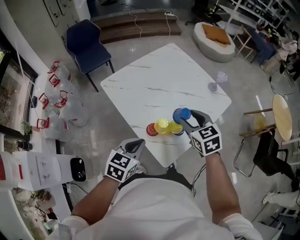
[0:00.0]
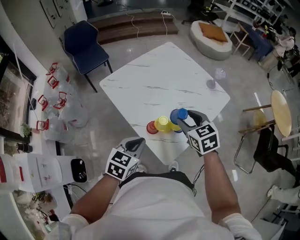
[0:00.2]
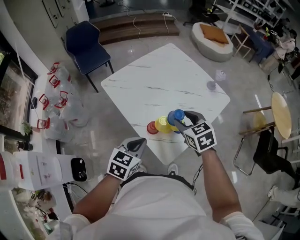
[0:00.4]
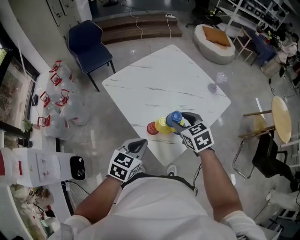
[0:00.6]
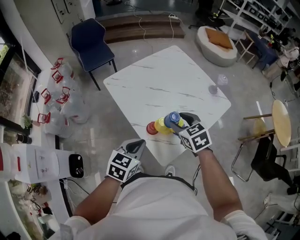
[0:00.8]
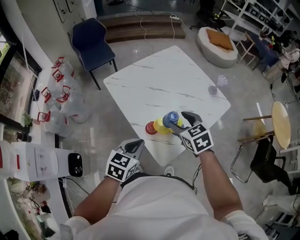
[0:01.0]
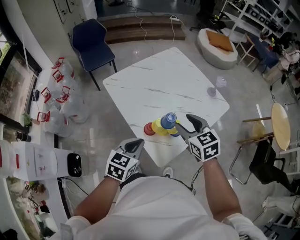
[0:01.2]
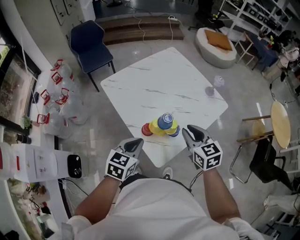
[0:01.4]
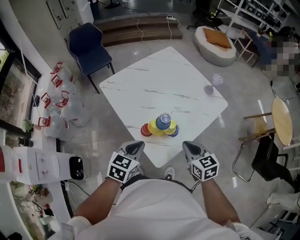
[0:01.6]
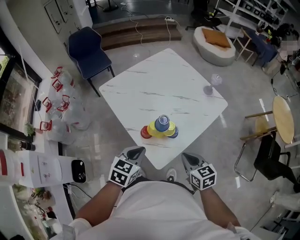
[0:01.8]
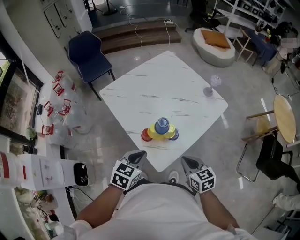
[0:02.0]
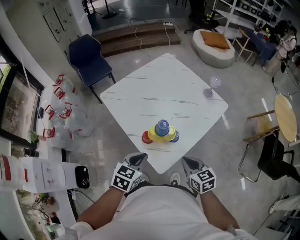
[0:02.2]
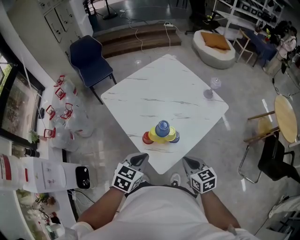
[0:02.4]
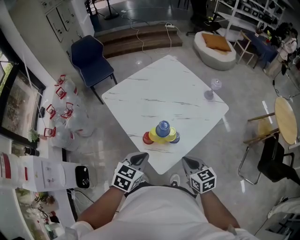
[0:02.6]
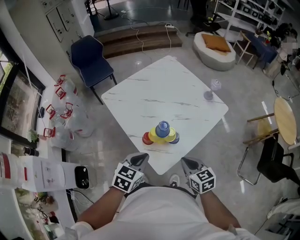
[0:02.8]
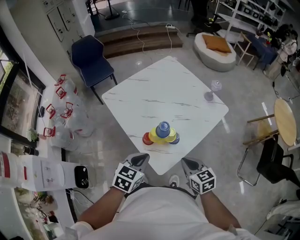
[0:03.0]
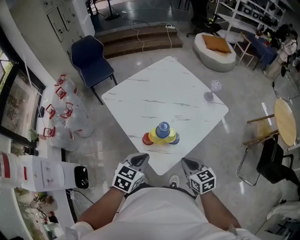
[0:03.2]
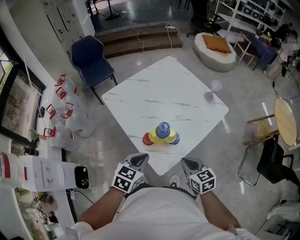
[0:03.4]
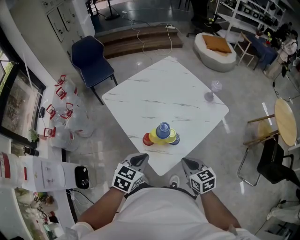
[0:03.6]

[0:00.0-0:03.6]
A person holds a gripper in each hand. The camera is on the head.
0.0 to 1.8 s: The left gripper shifts by some 5 cm. Meanwhile the right gripper travels backward, downward and to the right by about 20 cm, and closes up.
1.8 to 3.6 s: The grippers stay close to where they were, moving slightly.

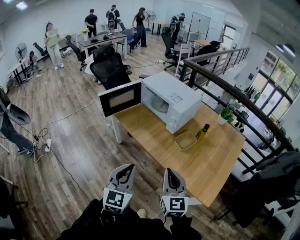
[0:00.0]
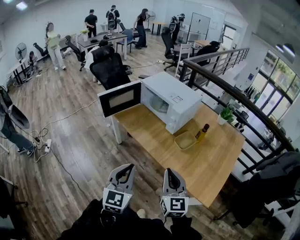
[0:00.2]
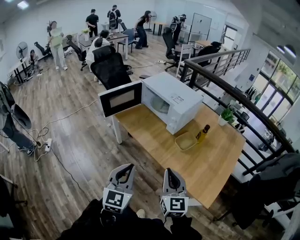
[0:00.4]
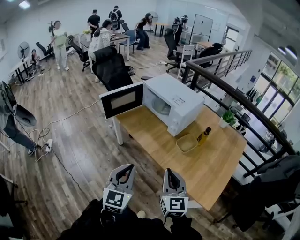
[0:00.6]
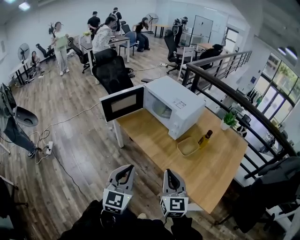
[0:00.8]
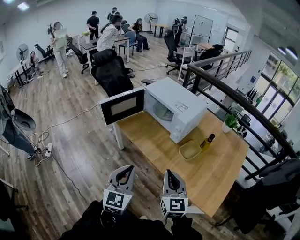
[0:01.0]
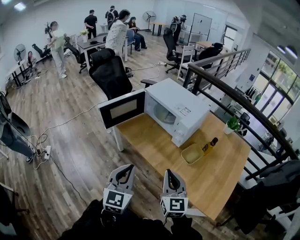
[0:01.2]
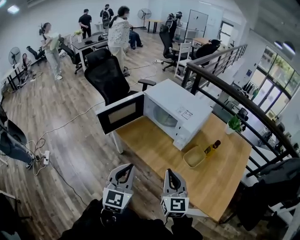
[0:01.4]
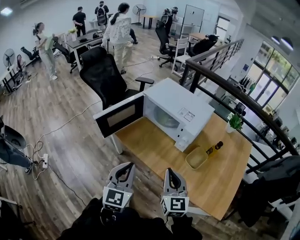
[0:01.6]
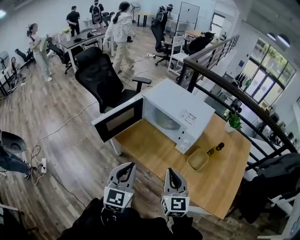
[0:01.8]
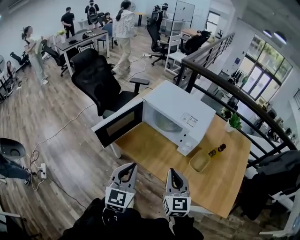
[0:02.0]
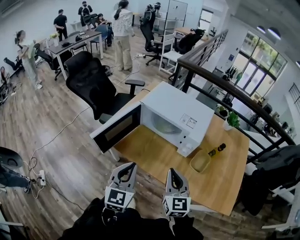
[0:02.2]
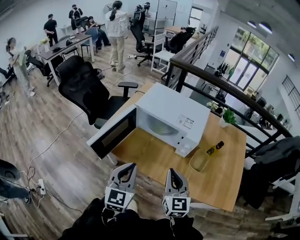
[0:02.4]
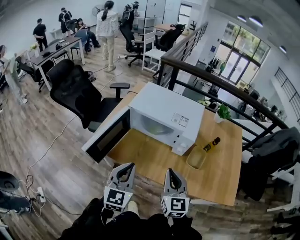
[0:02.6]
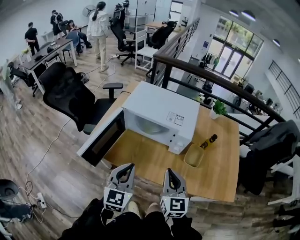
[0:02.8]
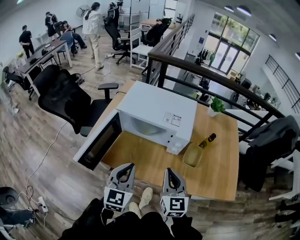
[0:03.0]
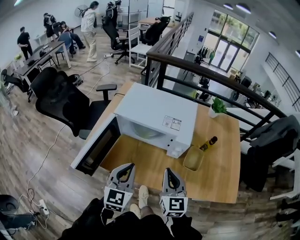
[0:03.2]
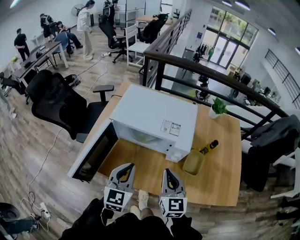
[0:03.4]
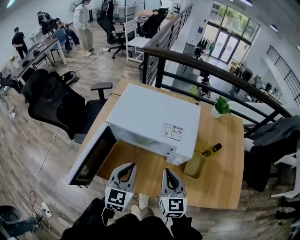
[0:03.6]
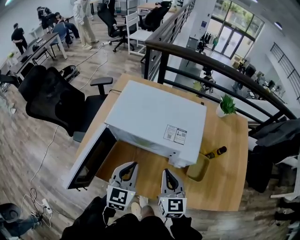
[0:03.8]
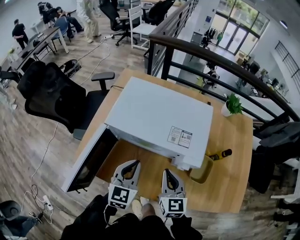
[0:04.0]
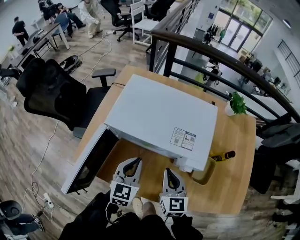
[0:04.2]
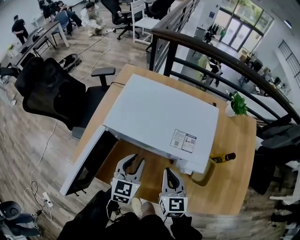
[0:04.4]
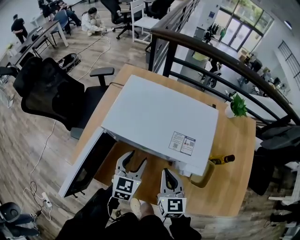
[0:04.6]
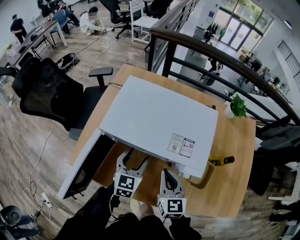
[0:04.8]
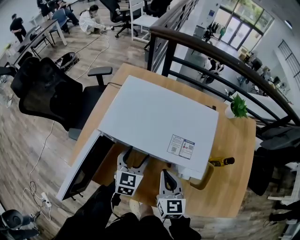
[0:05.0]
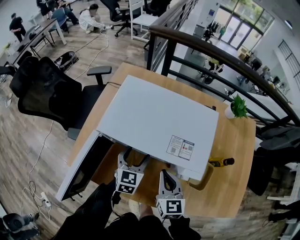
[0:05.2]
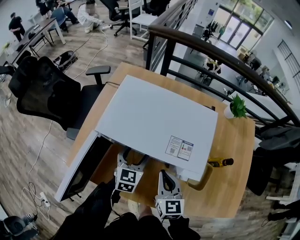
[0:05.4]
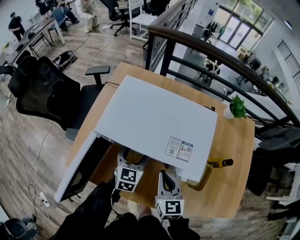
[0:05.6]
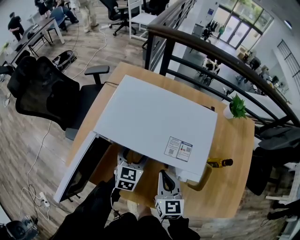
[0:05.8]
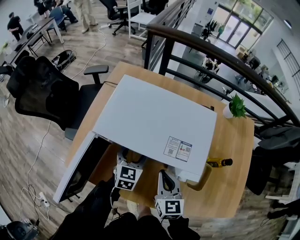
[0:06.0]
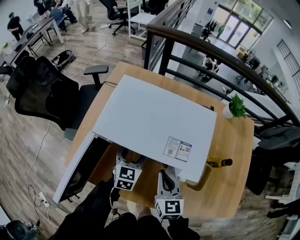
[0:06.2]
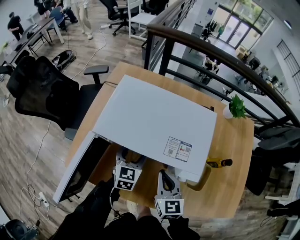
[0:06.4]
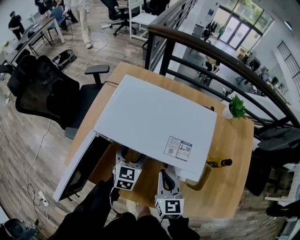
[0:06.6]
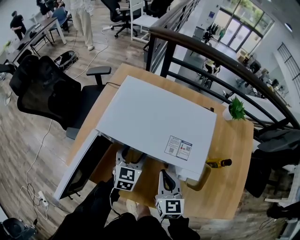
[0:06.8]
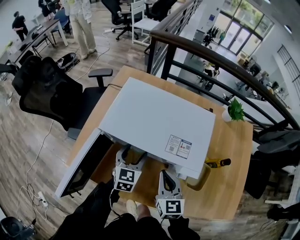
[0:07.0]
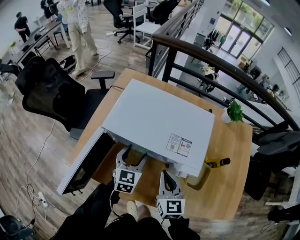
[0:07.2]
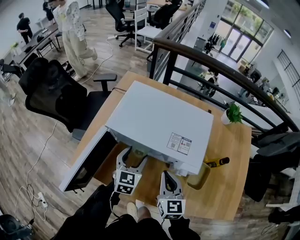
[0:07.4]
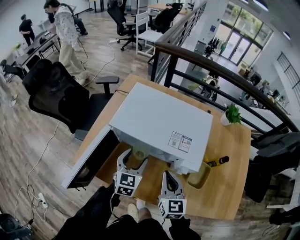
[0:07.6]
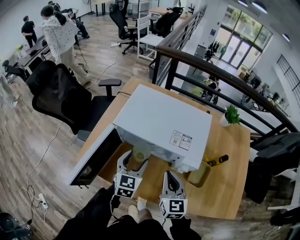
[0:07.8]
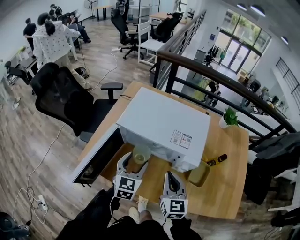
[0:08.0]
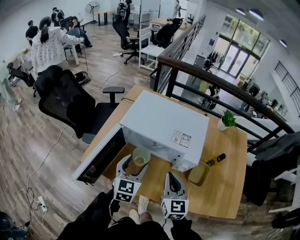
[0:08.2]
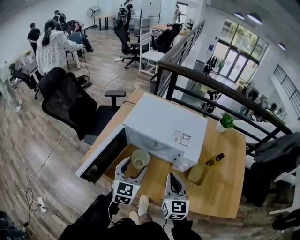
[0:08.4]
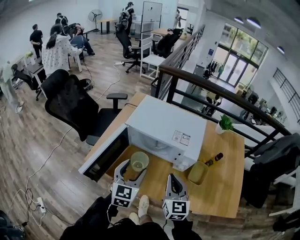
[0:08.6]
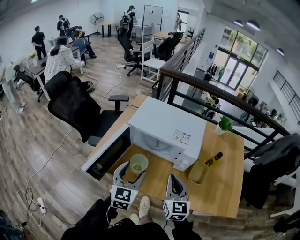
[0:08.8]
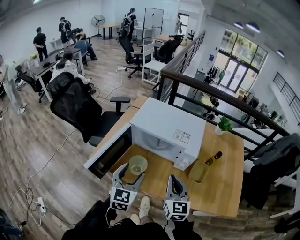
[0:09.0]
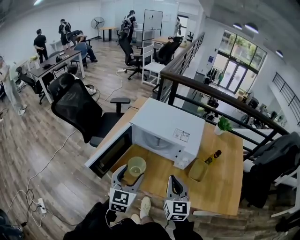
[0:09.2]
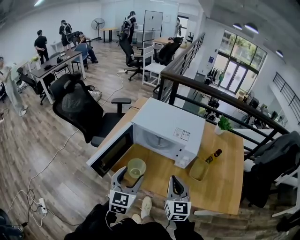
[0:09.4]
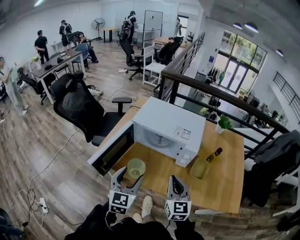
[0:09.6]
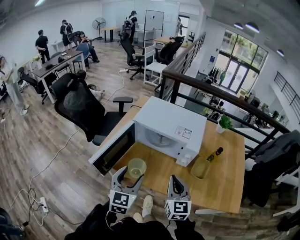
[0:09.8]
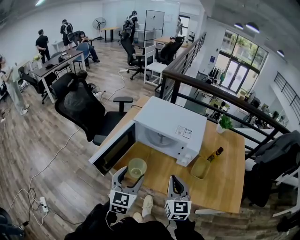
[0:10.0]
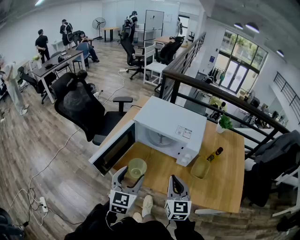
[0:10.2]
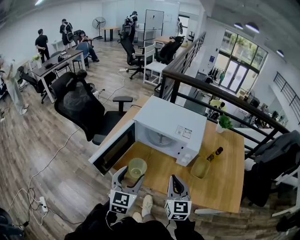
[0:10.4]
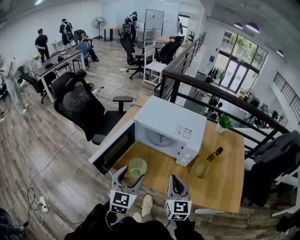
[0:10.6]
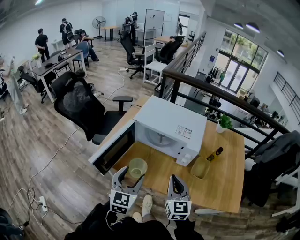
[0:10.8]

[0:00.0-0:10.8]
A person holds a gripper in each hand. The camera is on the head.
0.0 to 1.6 s: Both grippers move forward and to the left, roughly 25 cm.
1.6 to 3.0 s: The two grippers go about 15 cm forward. The left gripper swivels about 20 degrees. Meanwhile the right gripper changes its angle by approximately 20 degrees.
3.0 to 4.6 s: Both grippers move forward and downward, about 25 cm. The left gripper opens up.
4.6 to 6.2 s: The left gripper heads forward, covering about 5 cm.
6.2 to 7.8 s: Both grippers move backward and upward, approximately 10 cm.
7.8 to 9.2 s: The two grippers go approximately 20 cm backward and upward.
9.2 to 10.8 s: The grippers stay close to where they were, moving slightly.

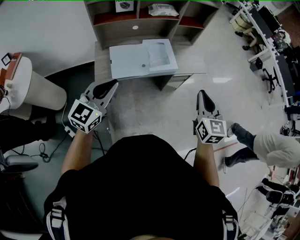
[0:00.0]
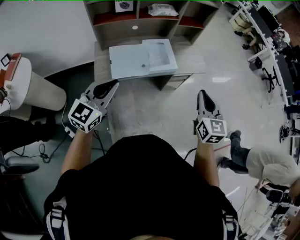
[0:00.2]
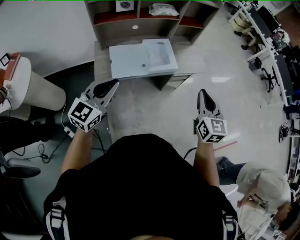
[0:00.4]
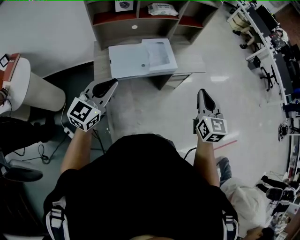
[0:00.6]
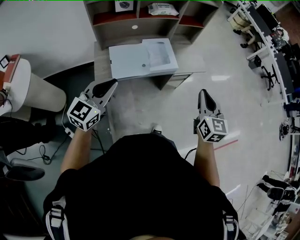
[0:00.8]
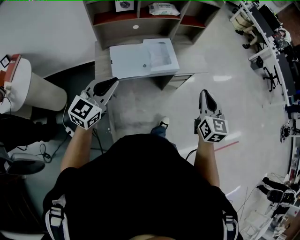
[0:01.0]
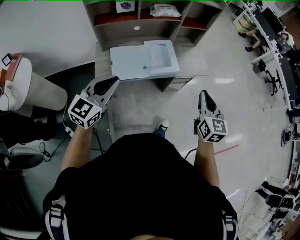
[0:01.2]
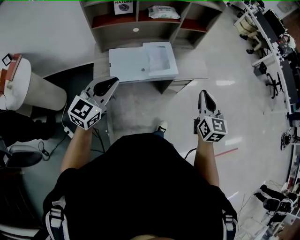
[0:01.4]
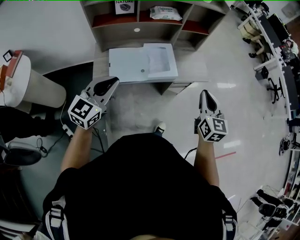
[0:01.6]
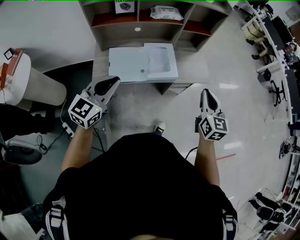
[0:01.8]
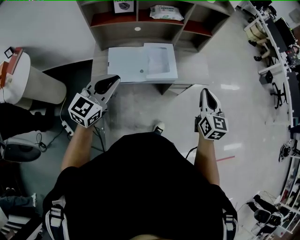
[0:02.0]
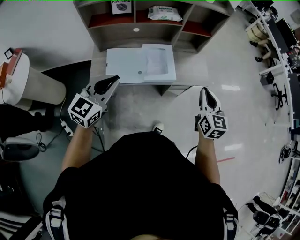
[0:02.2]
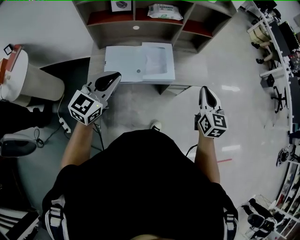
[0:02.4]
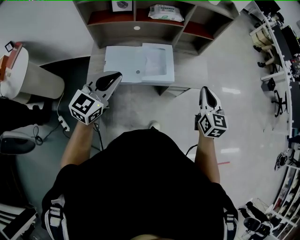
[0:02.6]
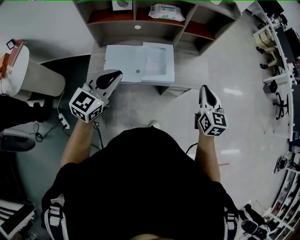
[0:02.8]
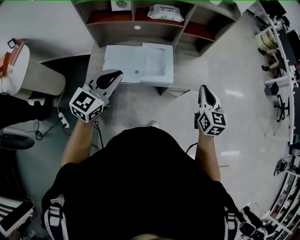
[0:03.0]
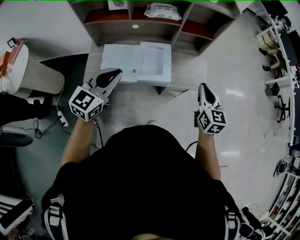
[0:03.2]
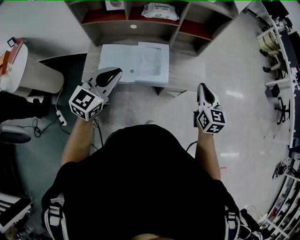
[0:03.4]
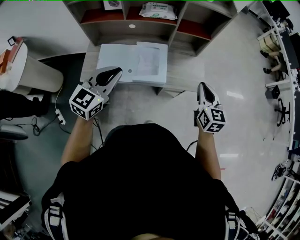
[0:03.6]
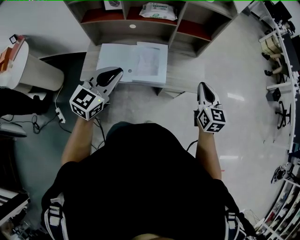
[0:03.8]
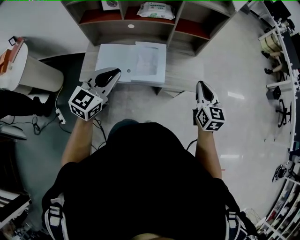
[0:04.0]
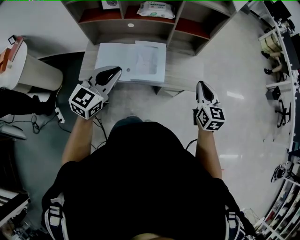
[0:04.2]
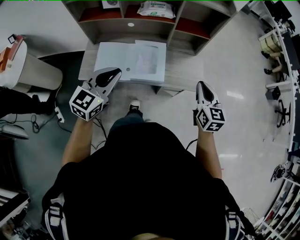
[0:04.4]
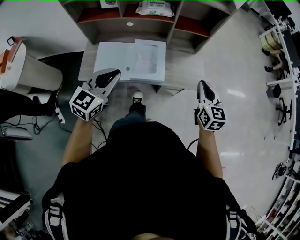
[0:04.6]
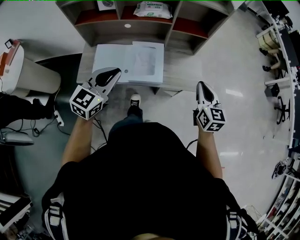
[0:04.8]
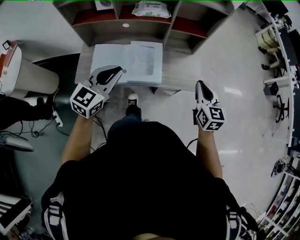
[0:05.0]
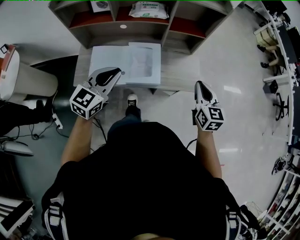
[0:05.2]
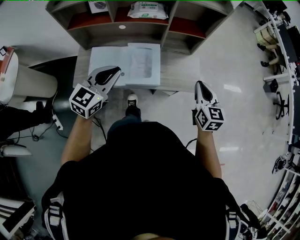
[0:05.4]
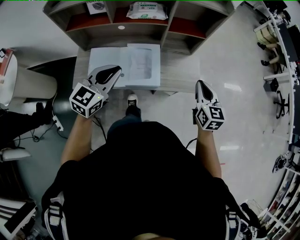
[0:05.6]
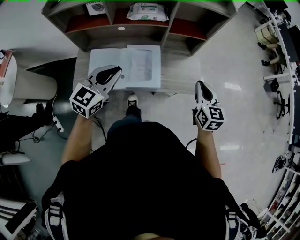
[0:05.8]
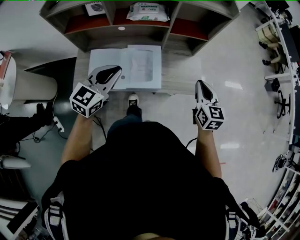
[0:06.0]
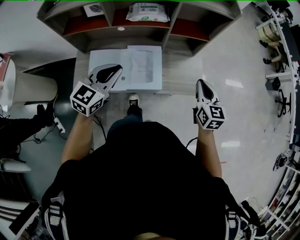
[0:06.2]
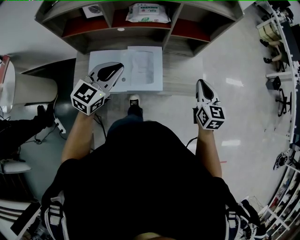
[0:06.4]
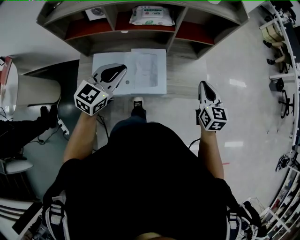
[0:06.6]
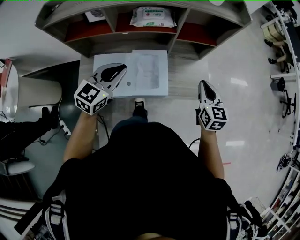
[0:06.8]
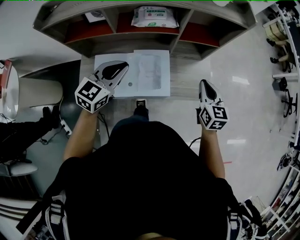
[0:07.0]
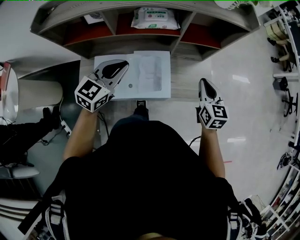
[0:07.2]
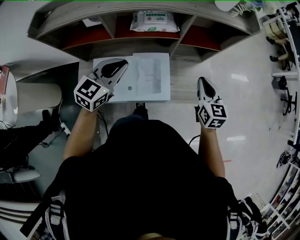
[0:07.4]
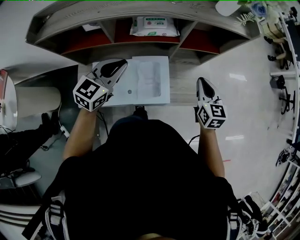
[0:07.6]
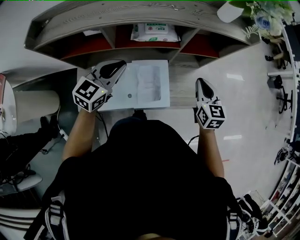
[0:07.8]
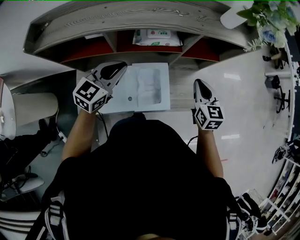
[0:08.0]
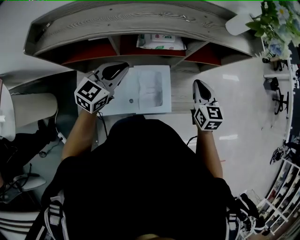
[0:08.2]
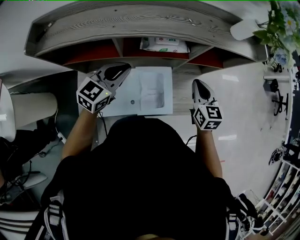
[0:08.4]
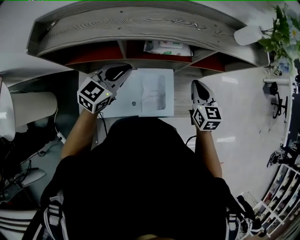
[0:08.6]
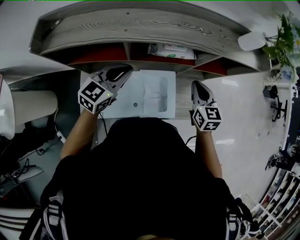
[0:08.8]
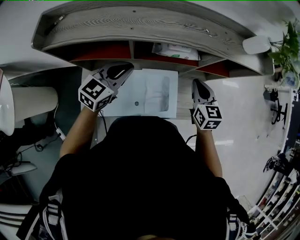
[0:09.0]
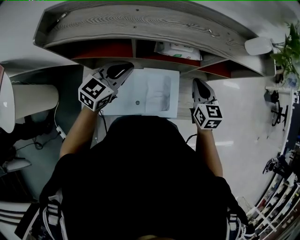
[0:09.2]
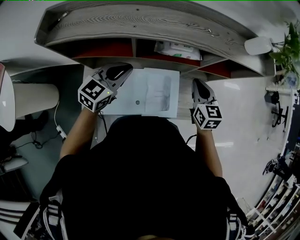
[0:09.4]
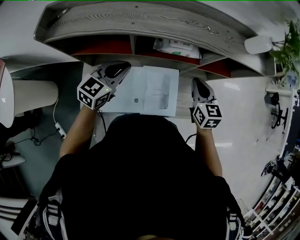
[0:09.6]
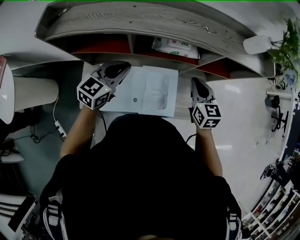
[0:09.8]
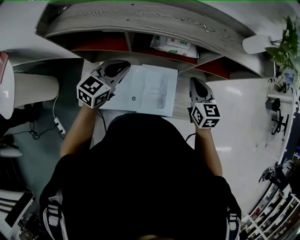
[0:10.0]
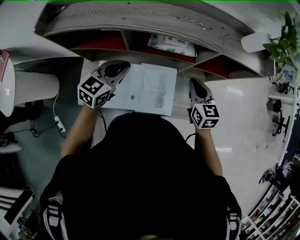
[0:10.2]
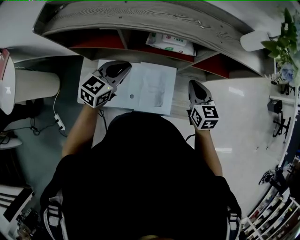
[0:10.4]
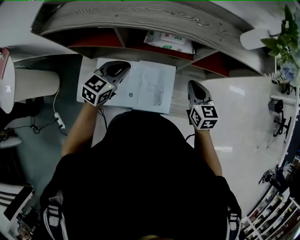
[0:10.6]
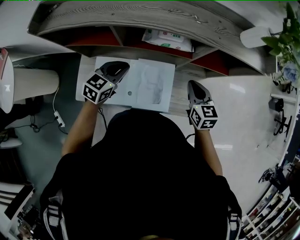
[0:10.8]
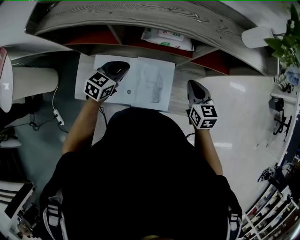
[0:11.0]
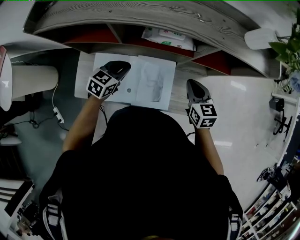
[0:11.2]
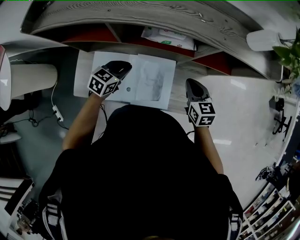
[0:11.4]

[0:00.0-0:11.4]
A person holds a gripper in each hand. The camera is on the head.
0.0 to 1.4 s: Both grippers travel together forward, approximately 5 cm.
1.4 to 2.8 s: The right gripper travels forward by approximately 15 cm; the left gripper travels forward and to the right by roughly 15 cm.
2.8 to 4.2 s: The left gripper goes some 10 cm to the right. The right gripper travels to the right and forward by about 10 cm.
4.2 to 5.6 s: The left gripper moves forward, about 10 cm. Meanwhile the right gripper heads forward, covering roughly 5 cm.
5.6 to 7.2 s: Both grippers move forward and to the left, about 15 cm.
7.2 to 8.6 s: Both grippers travel together to the left and forward, about 15 cm.
8.6 to 10.0 s: The grippers stay close to where they were, moving slightly.
10.0 to 11.4 s: The left gripper travels downward by some 15 cm; the right gripper travels downward by approximately 10 cm.
